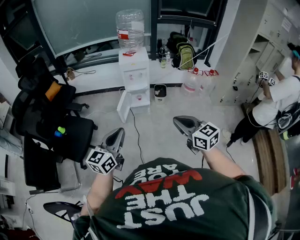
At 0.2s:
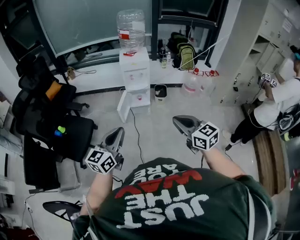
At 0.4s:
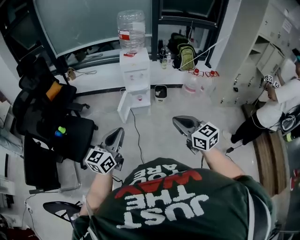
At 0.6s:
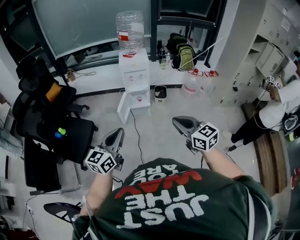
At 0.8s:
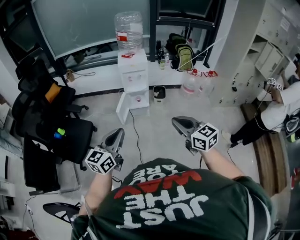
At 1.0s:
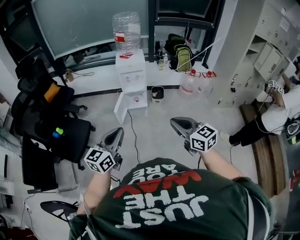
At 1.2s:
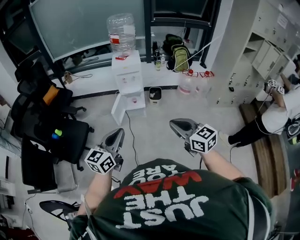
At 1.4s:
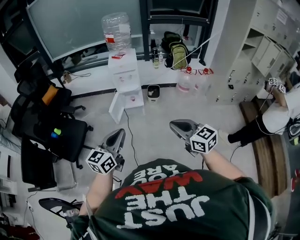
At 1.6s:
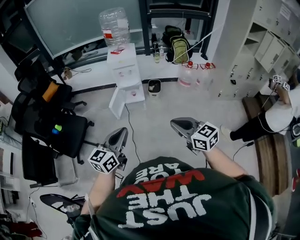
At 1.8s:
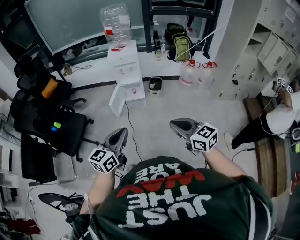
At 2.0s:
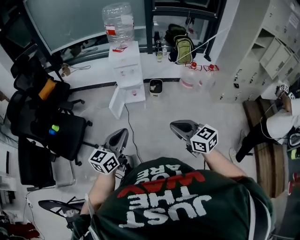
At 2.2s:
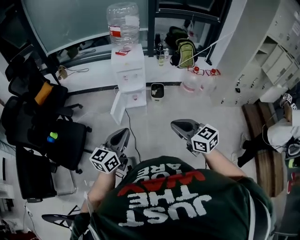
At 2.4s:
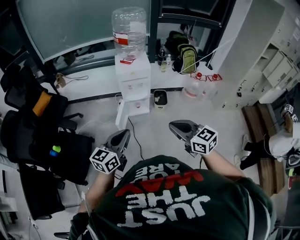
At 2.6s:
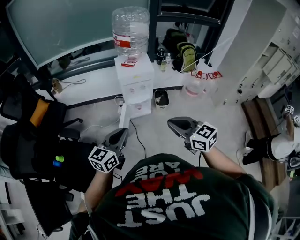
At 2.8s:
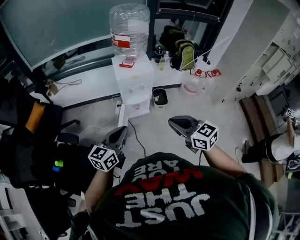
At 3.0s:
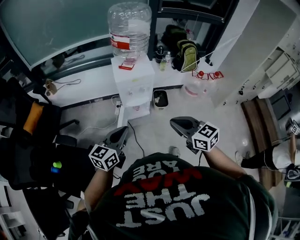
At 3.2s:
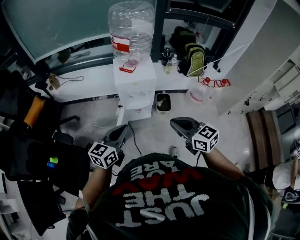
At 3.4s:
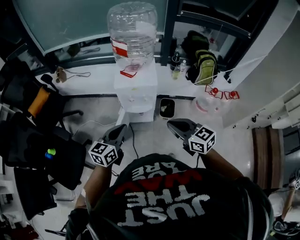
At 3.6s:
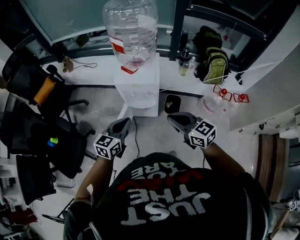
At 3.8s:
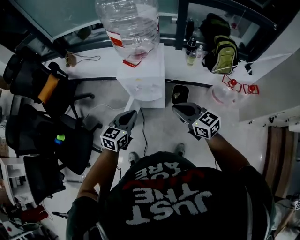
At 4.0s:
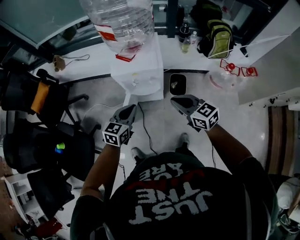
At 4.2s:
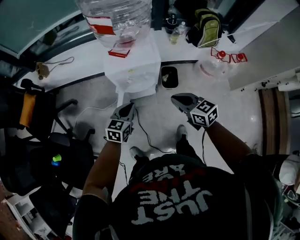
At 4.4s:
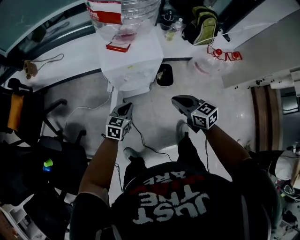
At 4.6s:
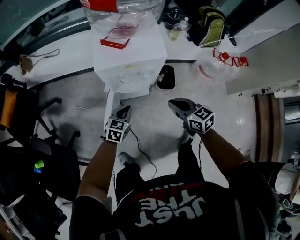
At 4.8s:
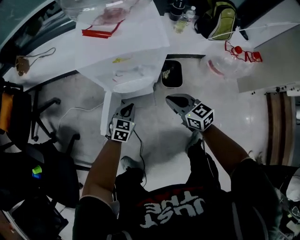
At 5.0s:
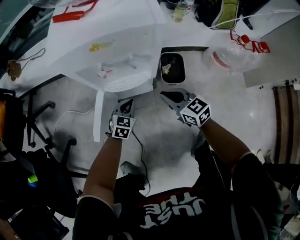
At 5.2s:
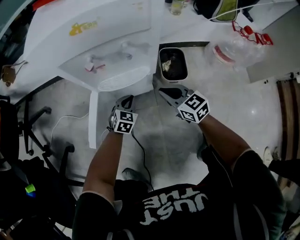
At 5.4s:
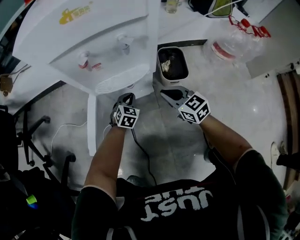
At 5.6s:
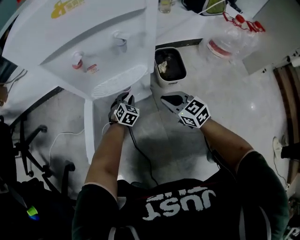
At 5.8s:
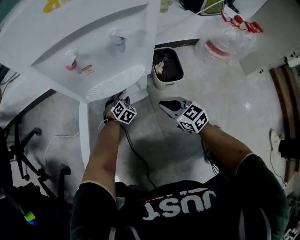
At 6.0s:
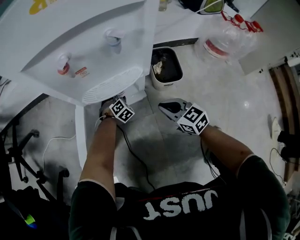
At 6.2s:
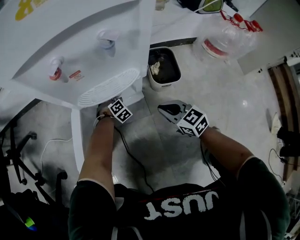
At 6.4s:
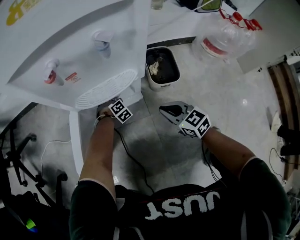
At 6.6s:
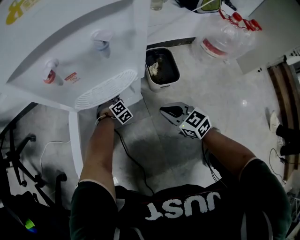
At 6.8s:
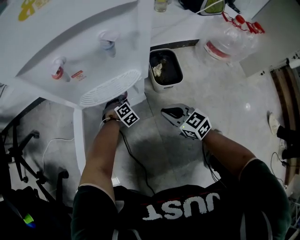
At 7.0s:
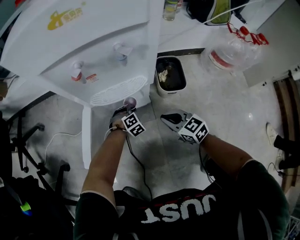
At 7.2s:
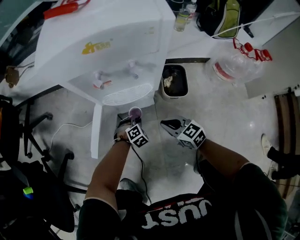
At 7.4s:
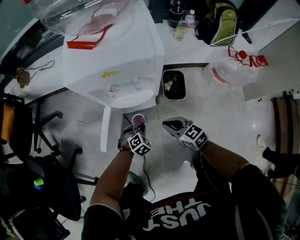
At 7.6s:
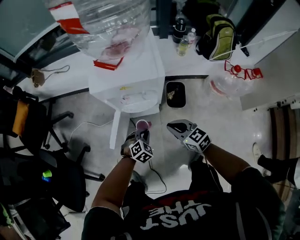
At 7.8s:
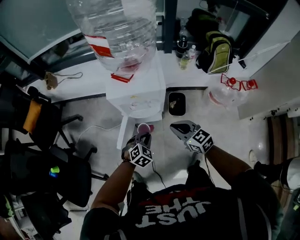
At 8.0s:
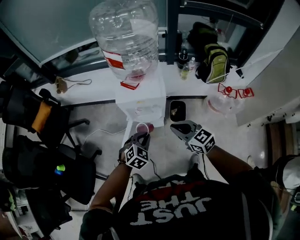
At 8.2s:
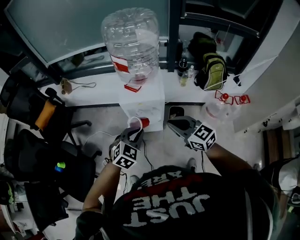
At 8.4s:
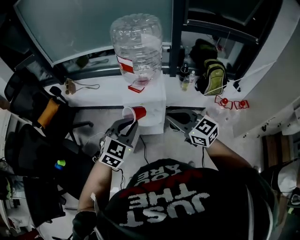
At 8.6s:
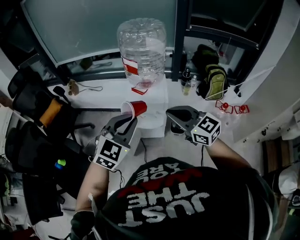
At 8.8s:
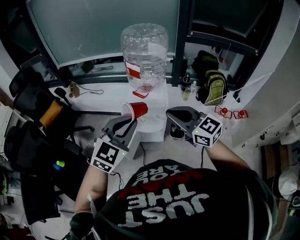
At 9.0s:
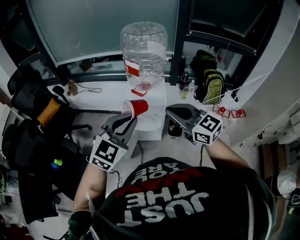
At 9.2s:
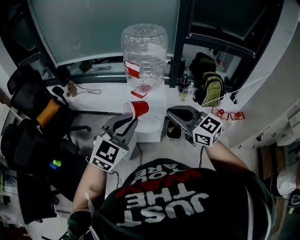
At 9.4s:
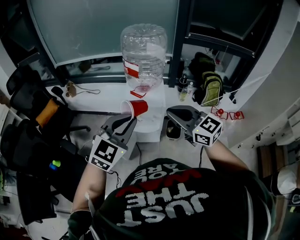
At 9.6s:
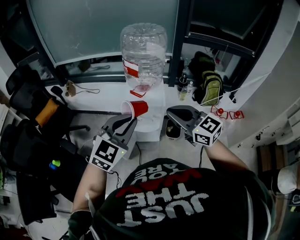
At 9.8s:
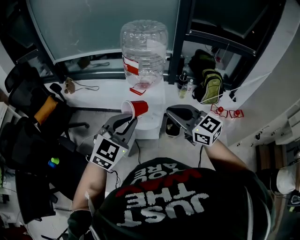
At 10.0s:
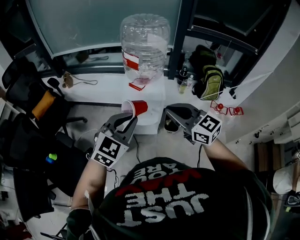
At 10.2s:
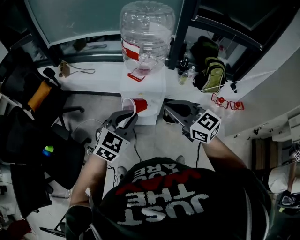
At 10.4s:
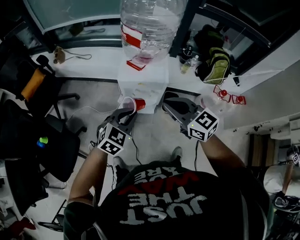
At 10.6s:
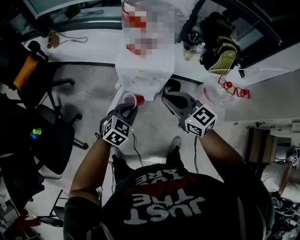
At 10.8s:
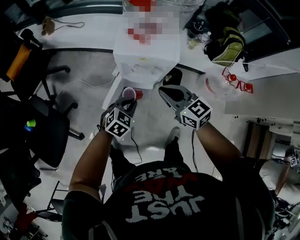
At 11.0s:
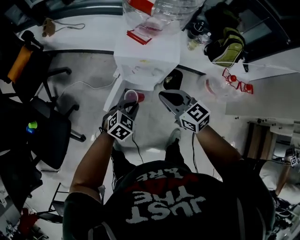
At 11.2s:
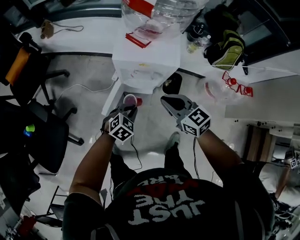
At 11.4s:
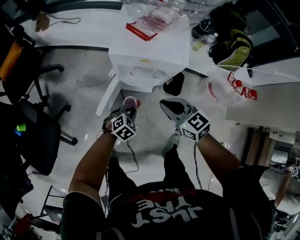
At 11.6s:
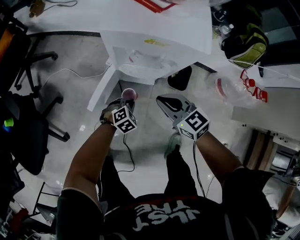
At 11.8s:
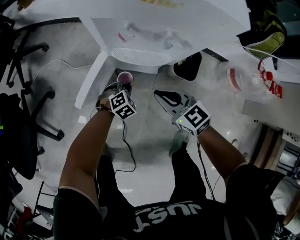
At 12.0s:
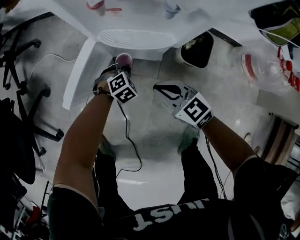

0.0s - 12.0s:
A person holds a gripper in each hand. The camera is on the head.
0.0s - 1.6s: The two grippers go approximately 15 cm to the right.
1.6s - 3.0s: The pair of grippers is taken forward and to the left, approximately 50 cm.
3.0s - 4.4s: The right gripper goes about 35 cm downward, forward and to the right; the left gripper is displaced downward and forward by some 40 cm, and swivels some 30 degrees.
4.4s - 6.0s: Both grippers travel together downward, roughly 60 cm. The left gripper twists about 50 degrees clockwise, seen from behind, and opens its fingers.
6.0s - 7.6s: The left gripper goes about 50 cm upward and backward, and closes up. The right gripper moves upward, about 35 cm.
7.6s - 9.0s: The two grippers go some 60 cm upward. The right gripper swivels roughly 30 degrees. The left gripper points its fingers roughly 40 degrees further upward.
9.0s - 10.4s: The left gripper travels downward by roughly 20 cm, and turns by roughly 20 degrees; the right gripper is displaced downward and forward by some 15 cm.
10.4s - 12.0s: The grippers both shift downward by about 70 cm. The left gripper points its fingers approximately 30 degrees further downward. Meanwhile the right gripper turns by approximately 20 degrees.

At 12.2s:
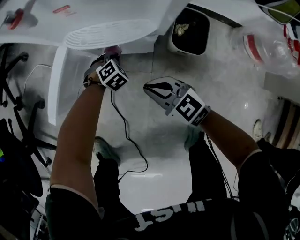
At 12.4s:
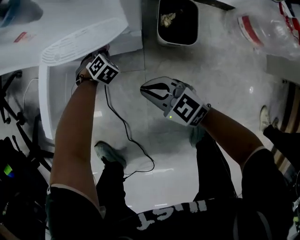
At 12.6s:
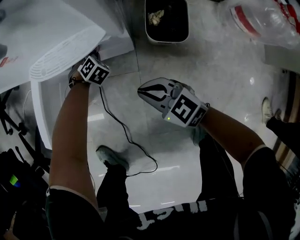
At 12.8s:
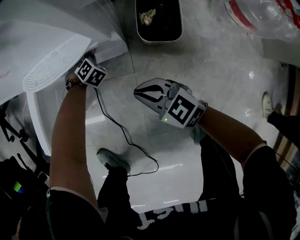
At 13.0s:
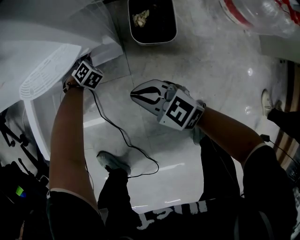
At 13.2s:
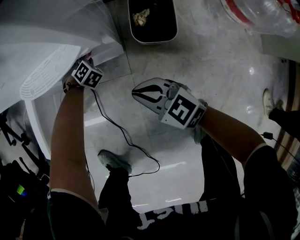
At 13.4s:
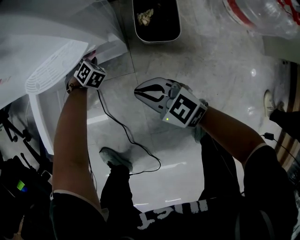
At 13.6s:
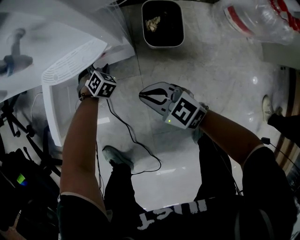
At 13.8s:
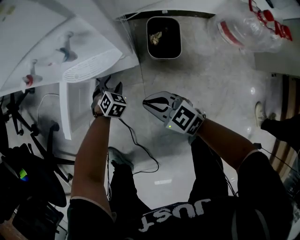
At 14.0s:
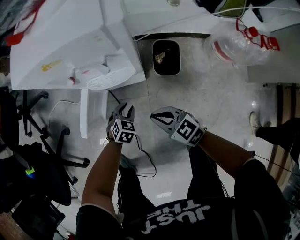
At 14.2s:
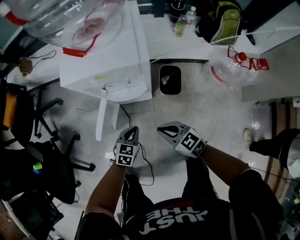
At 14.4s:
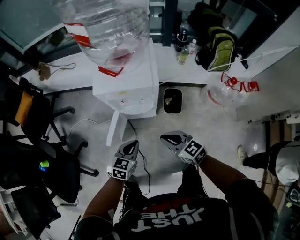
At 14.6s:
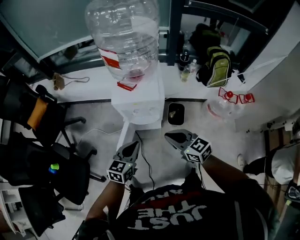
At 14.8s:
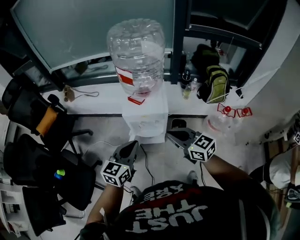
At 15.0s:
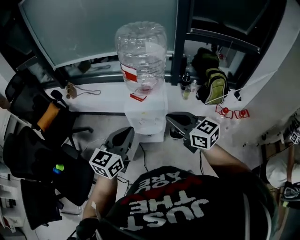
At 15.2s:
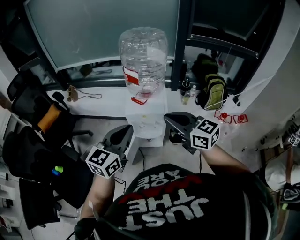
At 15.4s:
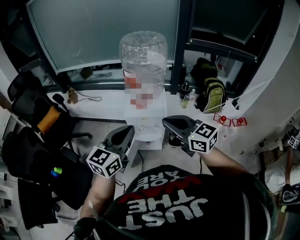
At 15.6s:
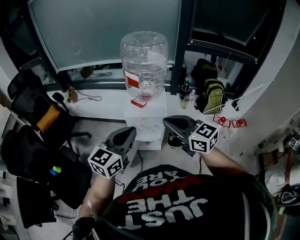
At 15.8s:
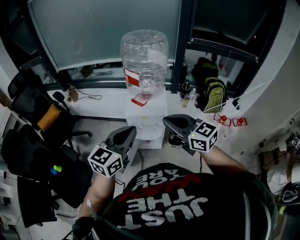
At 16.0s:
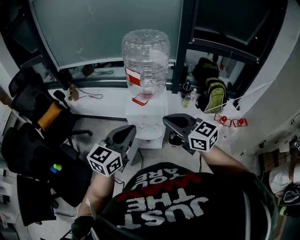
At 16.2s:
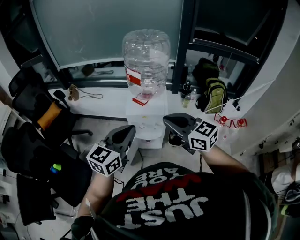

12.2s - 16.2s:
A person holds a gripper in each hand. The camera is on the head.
12.2s - 13.6s: The left gripper reaches roughly 5 cm downward, then returns, and opens; the right gripper moves roughly 5 cm.
13.6s - 14.8s: Both grippers move upward, roughly 80 cm. The left gripper tilts its fingers about 50 degrees upward, and closes.
14.8s - 16.2s: Both grippers move upward, roughly 15 cm.

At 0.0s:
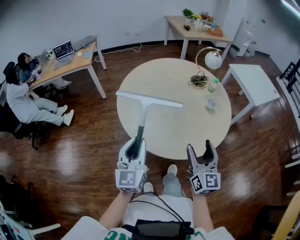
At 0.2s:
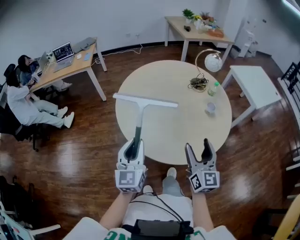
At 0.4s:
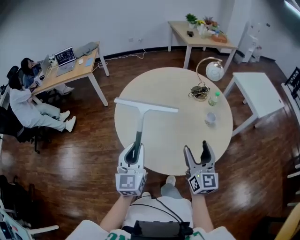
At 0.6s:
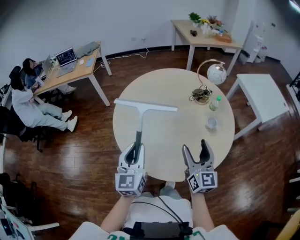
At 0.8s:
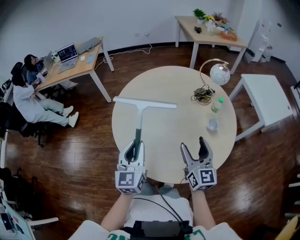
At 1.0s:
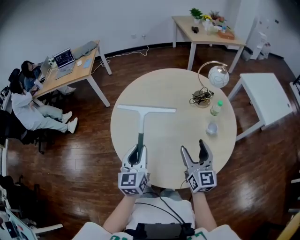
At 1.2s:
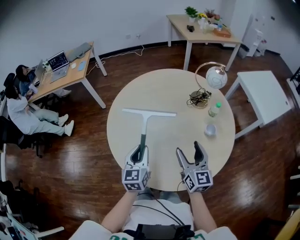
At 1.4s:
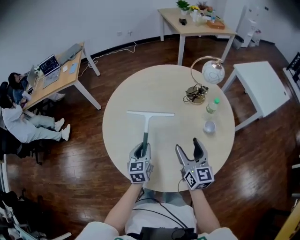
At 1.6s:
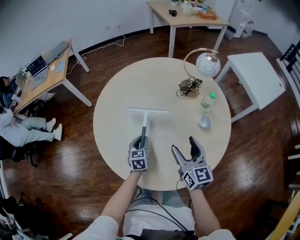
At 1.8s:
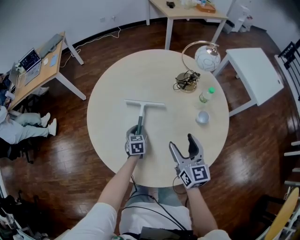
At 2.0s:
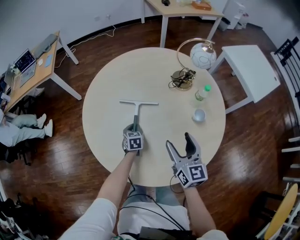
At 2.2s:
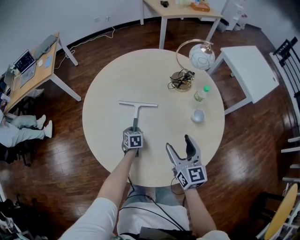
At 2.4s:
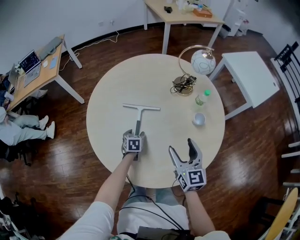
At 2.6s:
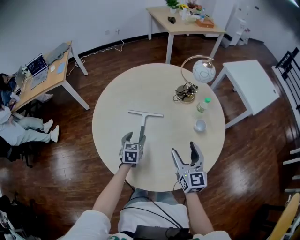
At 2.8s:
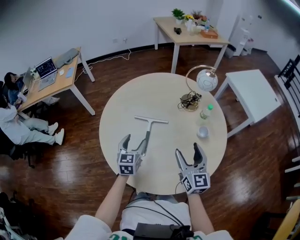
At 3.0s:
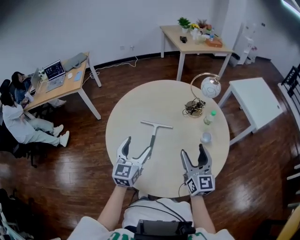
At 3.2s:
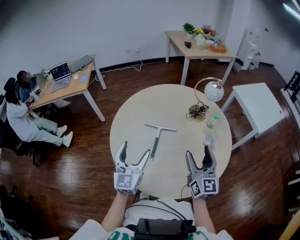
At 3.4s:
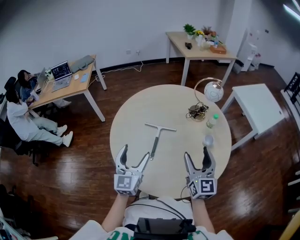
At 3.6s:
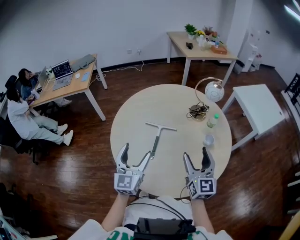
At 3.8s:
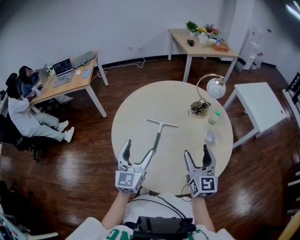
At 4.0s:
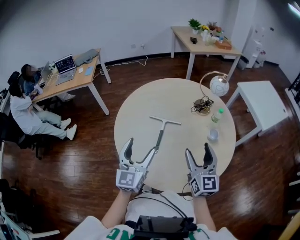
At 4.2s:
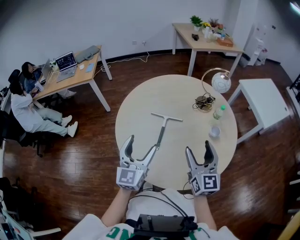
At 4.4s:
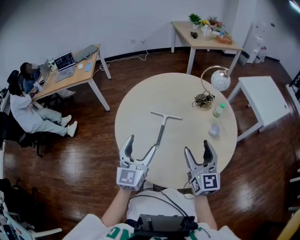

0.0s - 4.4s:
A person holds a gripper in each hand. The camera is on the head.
0.0s - 1.4s: The left gripper heads forward, downward and to the right, covering approximately 35 cm, and swivels about 30 degrees; the right gripper heads forward, covering roughly 25 cm.
1.4s - 3.0s: The left gripper moves upward, approximately 15 cm, turns by about 20 degrees, and opens, while the right gripper is displaced upward by about 5 cm.
3.0s - 4.4s: The left gripper moves backward, about 5 cm. The right gripper moves roughly 5 cm.

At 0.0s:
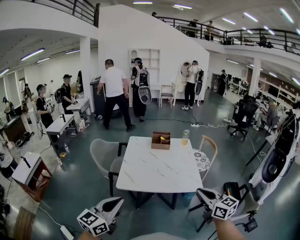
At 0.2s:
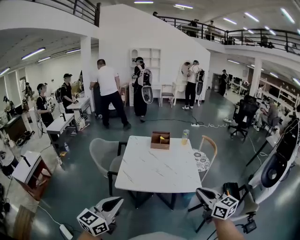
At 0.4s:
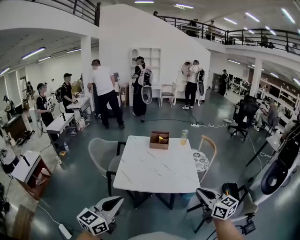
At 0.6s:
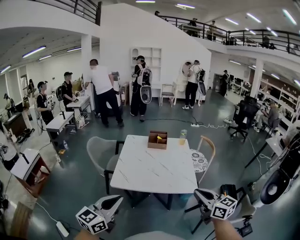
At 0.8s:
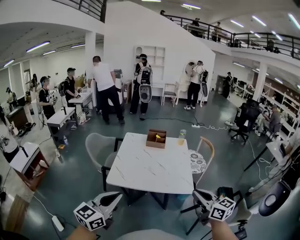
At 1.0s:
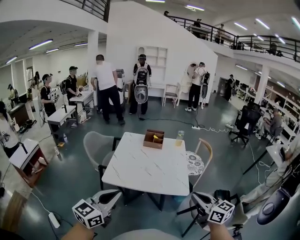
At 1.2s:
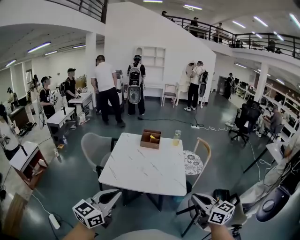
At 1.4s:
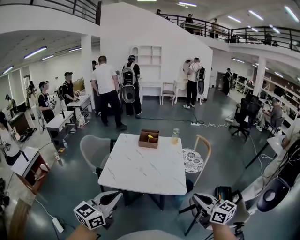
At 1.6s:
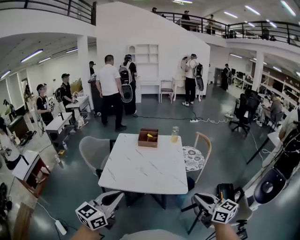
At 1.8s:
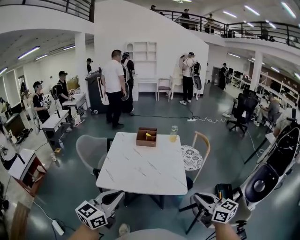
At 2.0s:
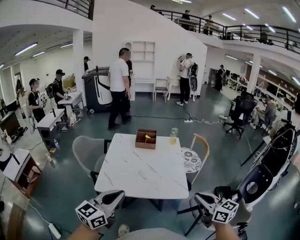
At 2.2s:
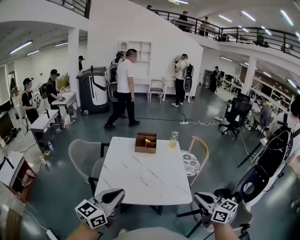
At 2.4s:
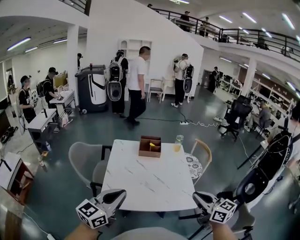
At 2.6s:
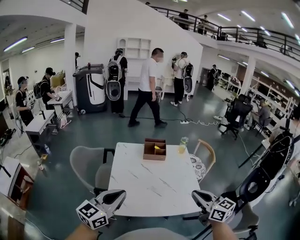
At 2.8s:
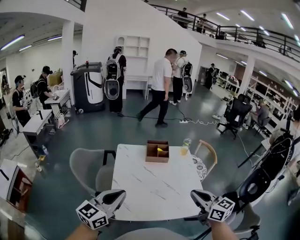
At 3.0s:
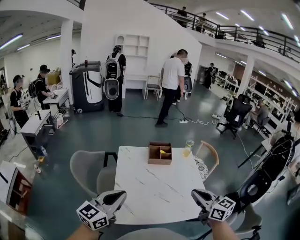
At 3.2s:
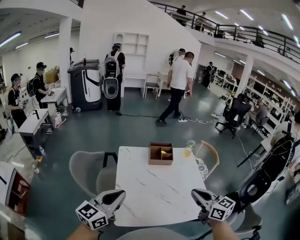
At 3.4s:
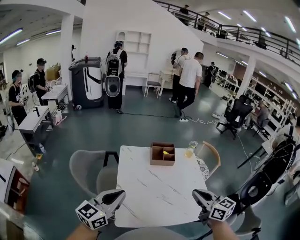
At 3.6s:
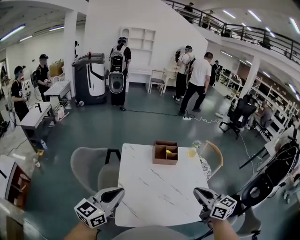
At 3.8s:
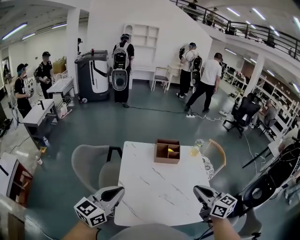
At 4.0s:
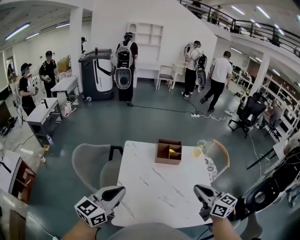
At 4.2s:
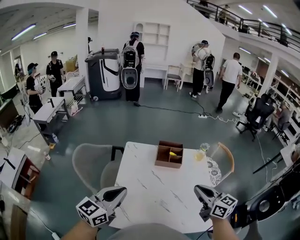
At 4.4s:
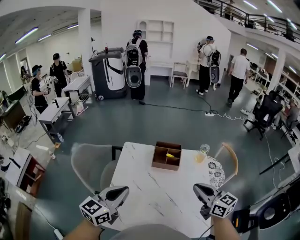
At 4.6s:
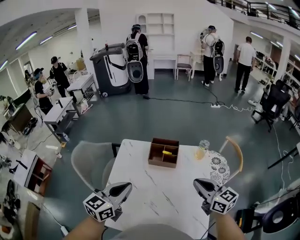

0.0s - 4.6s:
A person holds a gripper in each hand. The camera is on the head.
0.0s - 1.6s: The two grippers go roughly 15 cm to the right.
1.6s - 3.0s: The left gripper is displaced forward and to the left by approximately 35 cm. The right gripper travels to the left and forward by about 35 cm.
3.0s - 4.6s: The two grippers go some 25 cm forward and to the right.
